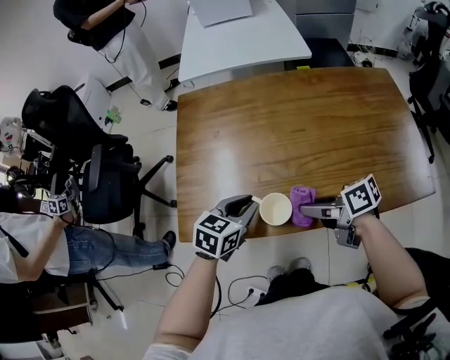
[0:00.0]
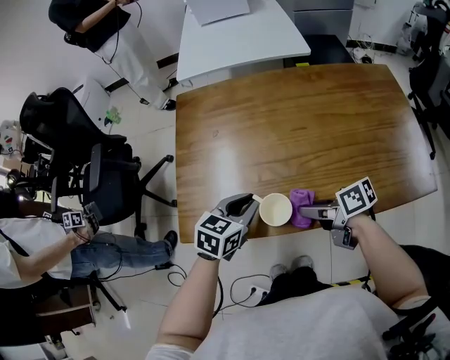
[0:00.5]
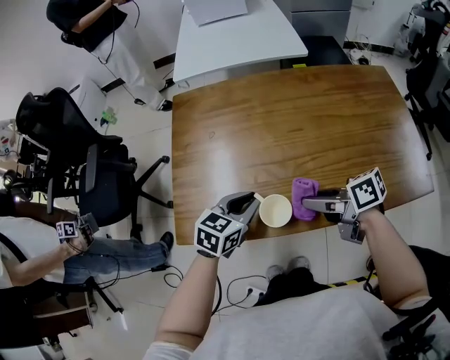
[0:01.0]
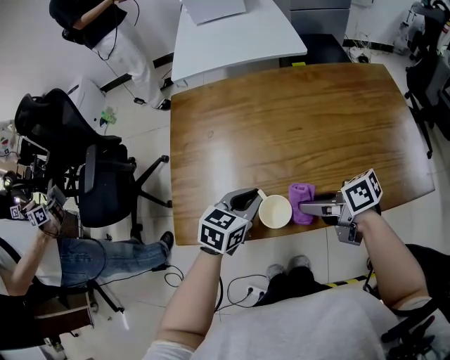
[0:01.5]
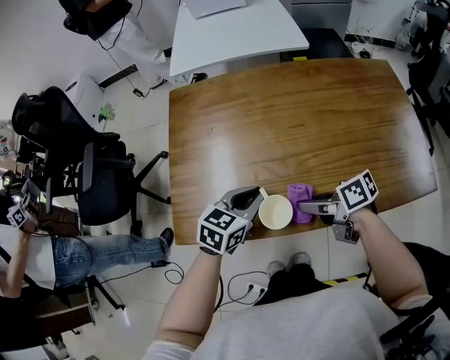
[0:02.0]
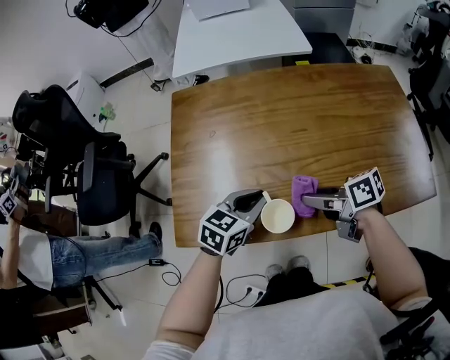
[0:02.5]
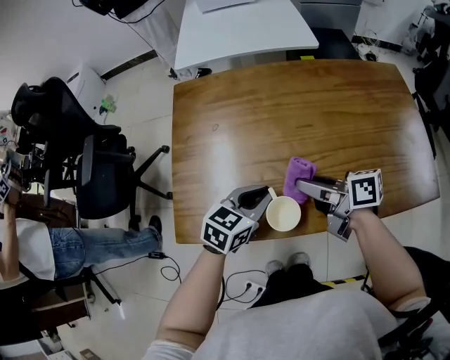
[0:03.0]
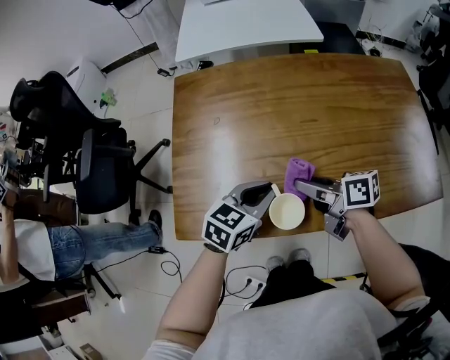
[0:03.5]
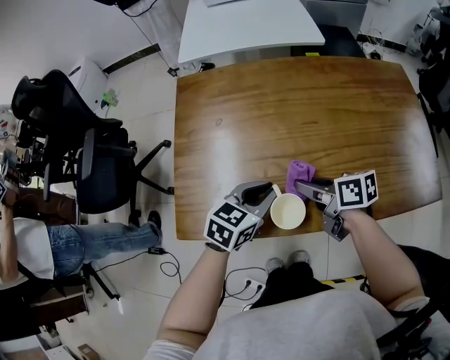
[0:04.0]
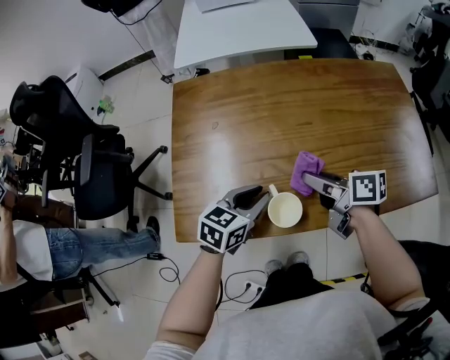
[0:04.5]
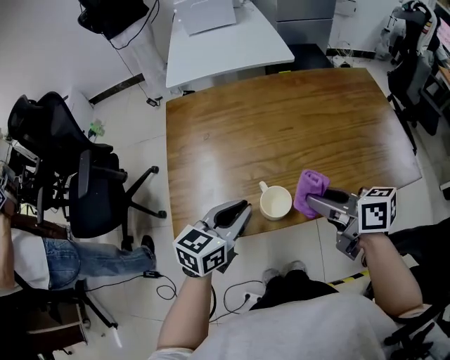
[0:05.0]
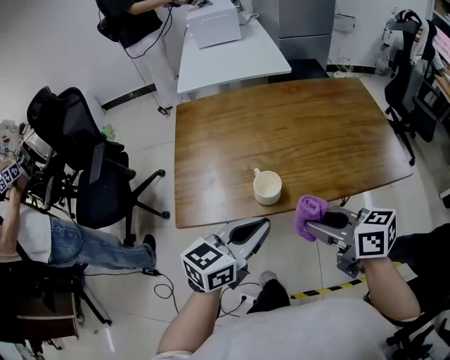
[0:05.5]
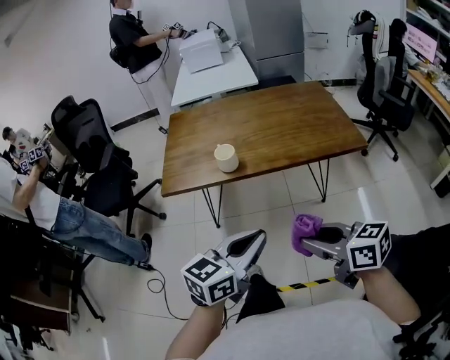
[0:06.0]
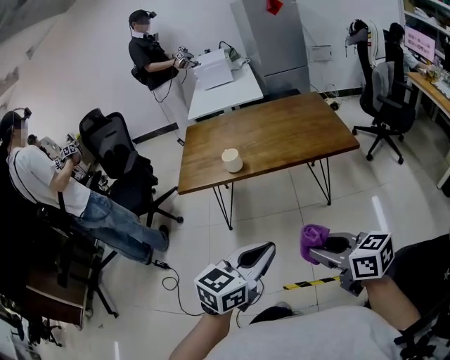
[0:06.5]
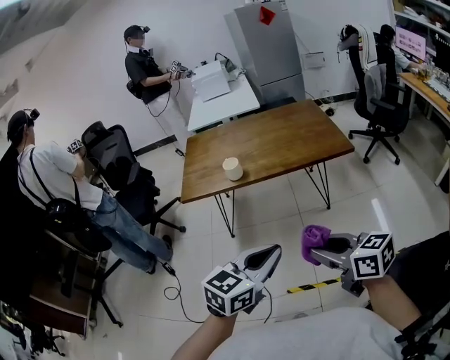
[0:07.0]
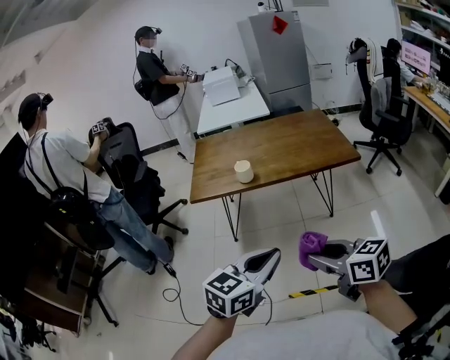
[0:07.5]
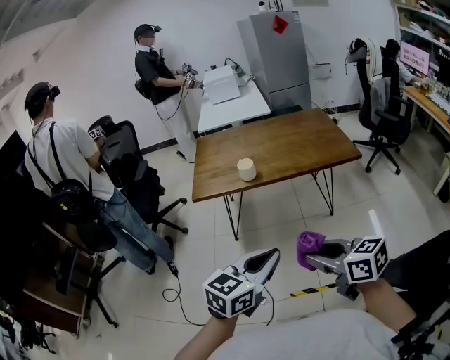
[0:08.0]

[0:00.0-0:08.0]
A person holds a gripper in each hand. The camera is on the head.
0:00.0 to 0:02.0: The grippers make only small movements.
0:02.0 to 0:04.0: The right gripper moves approximately 5 cm.
0:04.0 to 0:06.0: The pair of grippers is taken backward, roughly 50 cm. The right gripper changes its angle by about 30 degrees. Meanwhile the left gripper rotates some 20 degrees.
0:06.0 to 0:08.0: Both grippers move backward, about 20 cm.

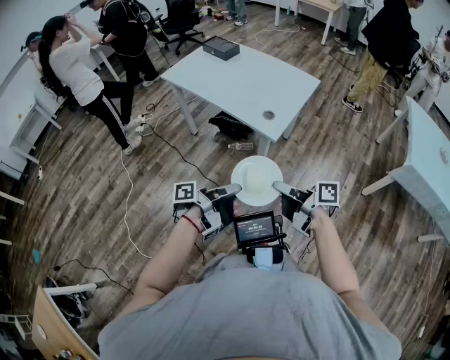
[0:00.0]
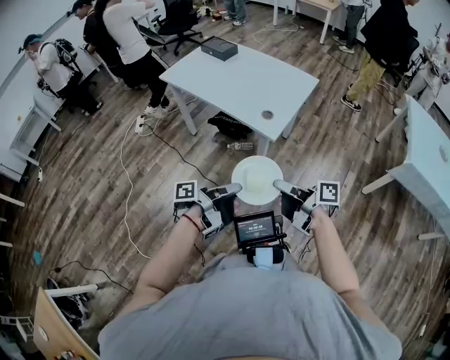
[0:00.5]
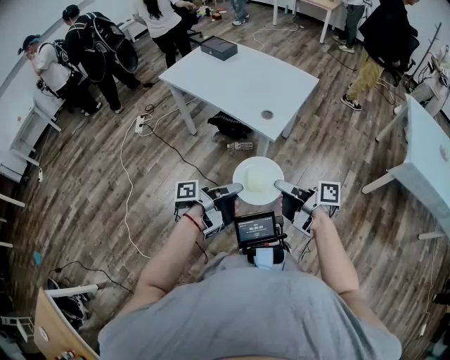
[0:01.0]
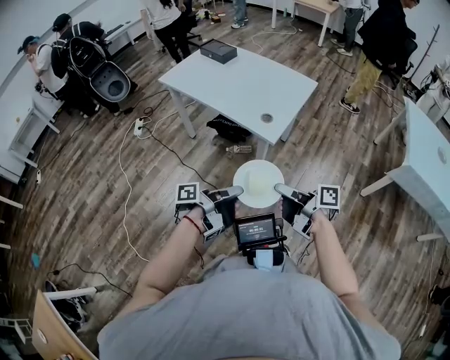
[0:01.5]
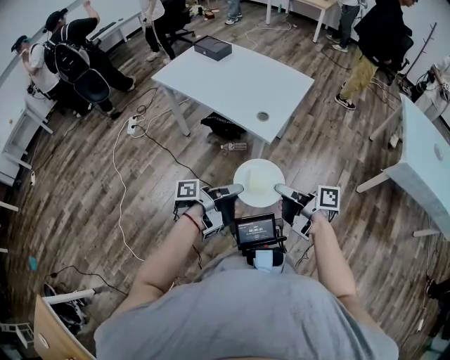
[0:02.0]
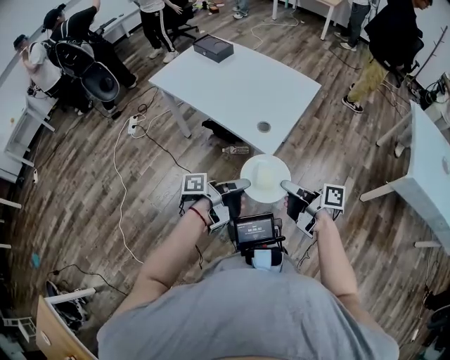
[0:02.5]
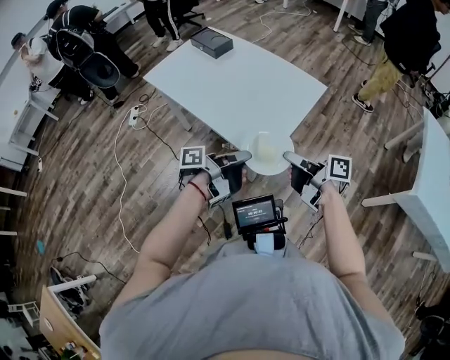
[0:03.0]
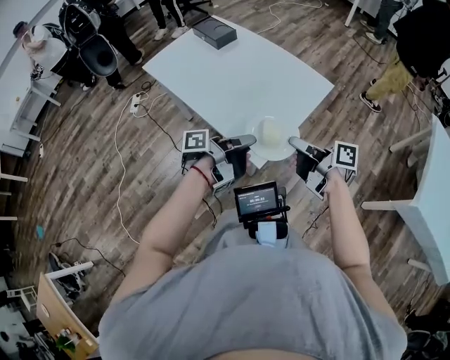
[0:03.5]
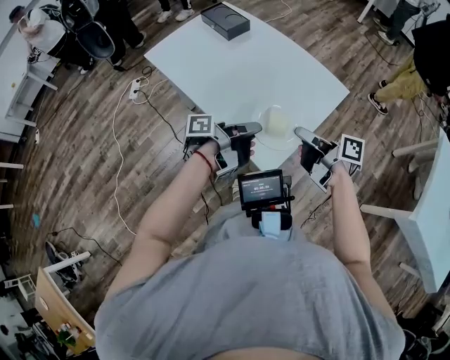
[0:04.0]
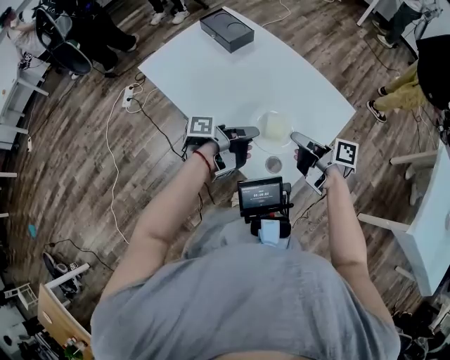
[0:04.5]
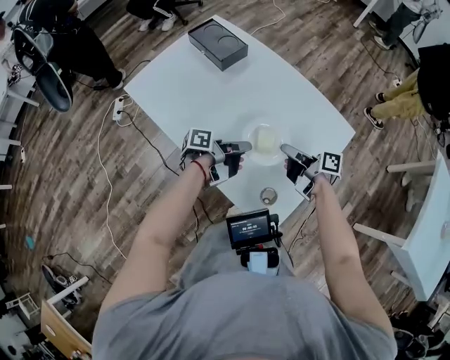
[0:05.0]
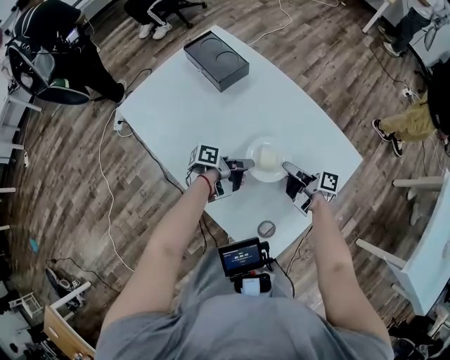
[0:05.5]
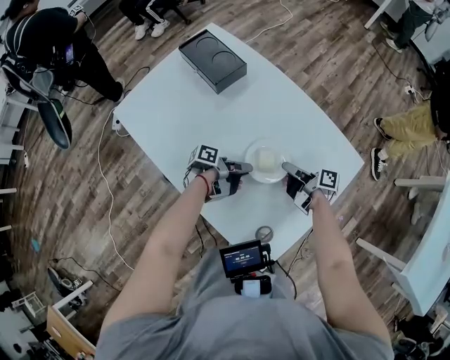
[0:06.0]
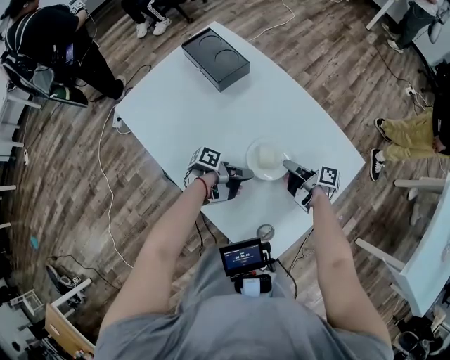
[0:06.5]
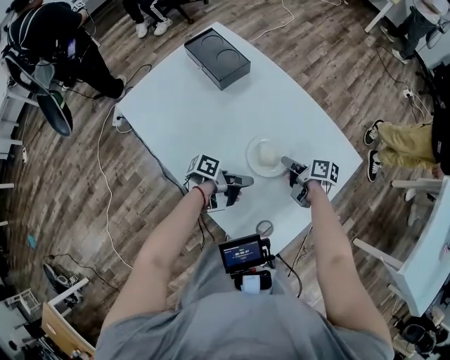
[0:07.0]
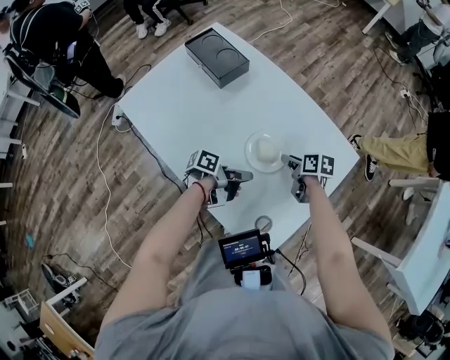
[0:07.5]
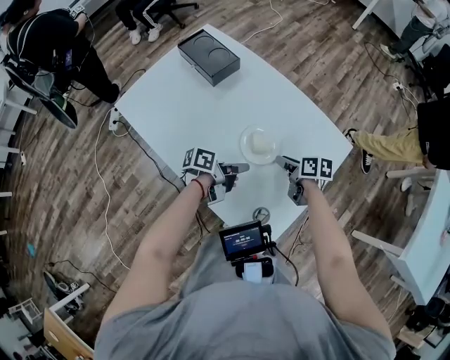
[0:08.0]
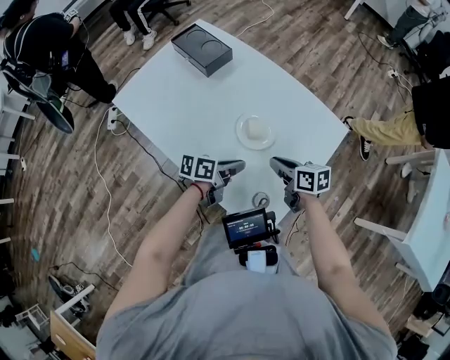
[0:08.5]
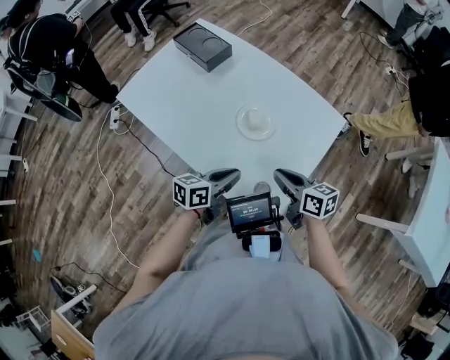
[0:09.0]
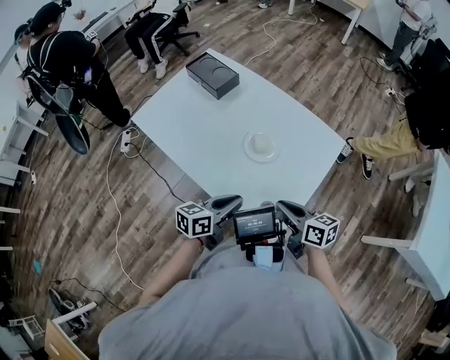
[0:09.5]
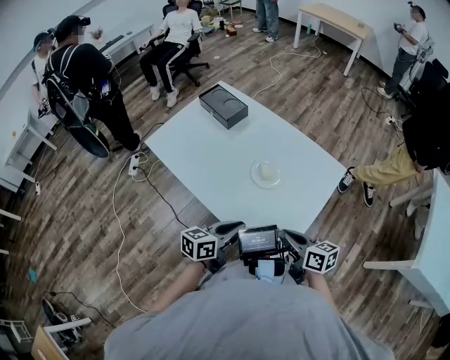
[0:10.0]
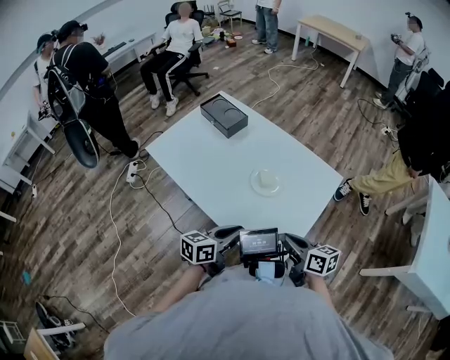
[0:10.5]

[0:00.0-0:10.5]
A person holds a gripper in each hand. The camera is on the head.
0:02.0 to 0:04.0: The right gripper shifts by roughly 40 cm.
0:04.0 to 0:06.5: The right gripper changes place by some 35 cm.
0:06.5 to 0:08.5: The right gripper ends up some 10 cm from where it was, and rotates some 40 degrees.
0:08.5 to 0:10.5: The right gripper shifts by roughly 15 cm.

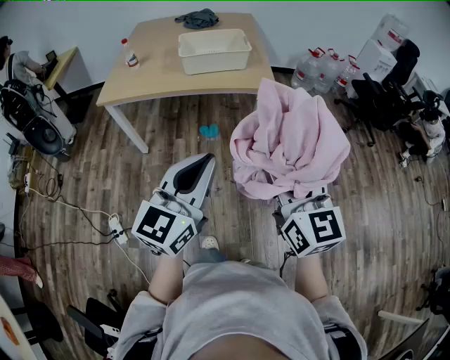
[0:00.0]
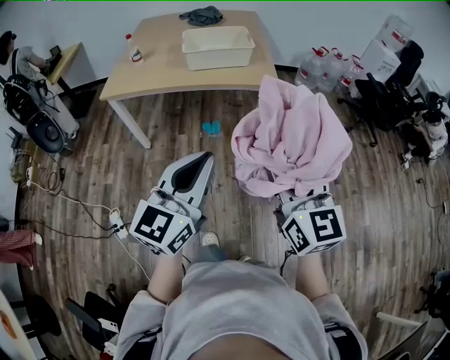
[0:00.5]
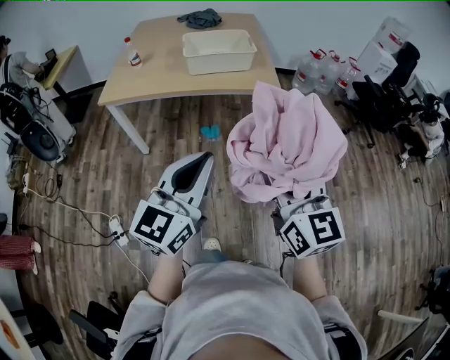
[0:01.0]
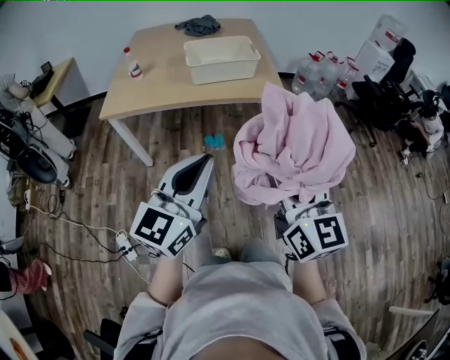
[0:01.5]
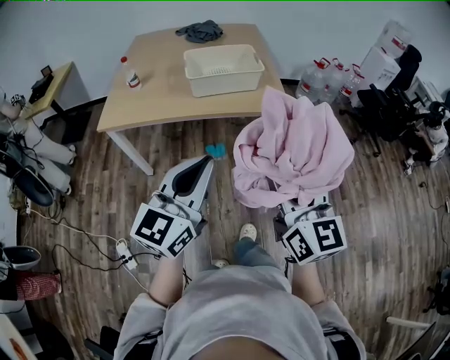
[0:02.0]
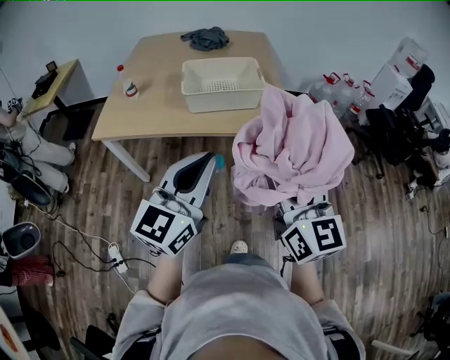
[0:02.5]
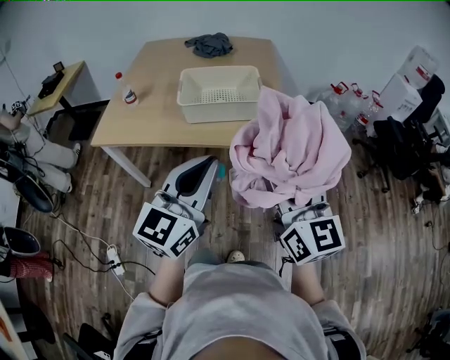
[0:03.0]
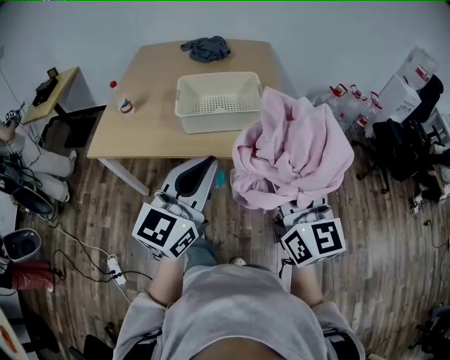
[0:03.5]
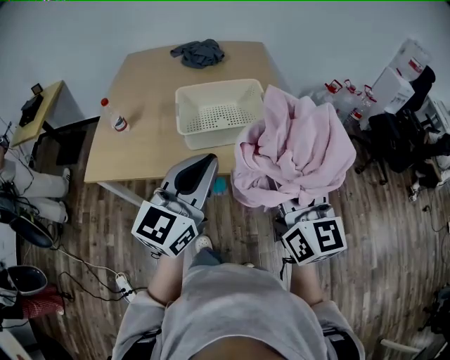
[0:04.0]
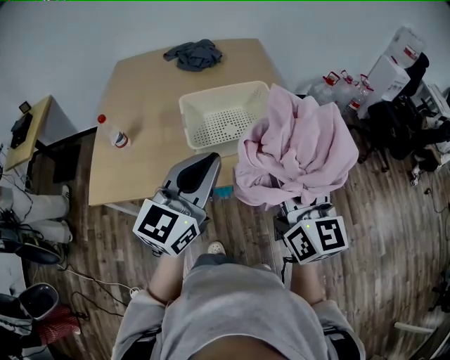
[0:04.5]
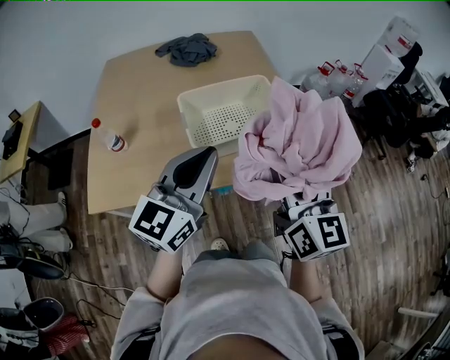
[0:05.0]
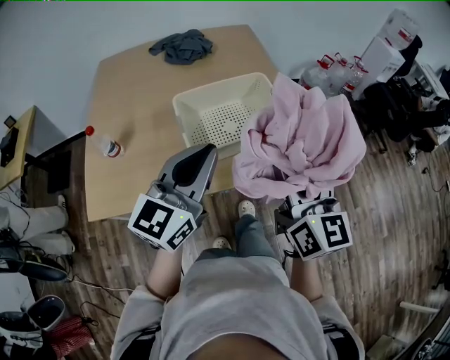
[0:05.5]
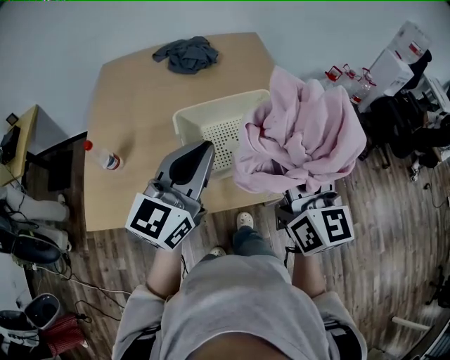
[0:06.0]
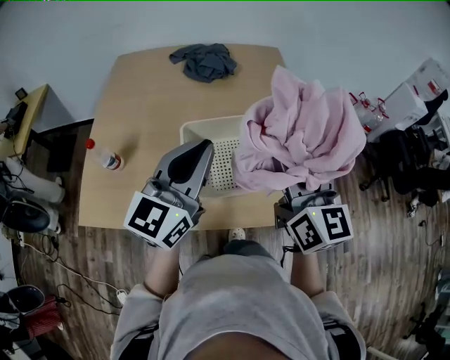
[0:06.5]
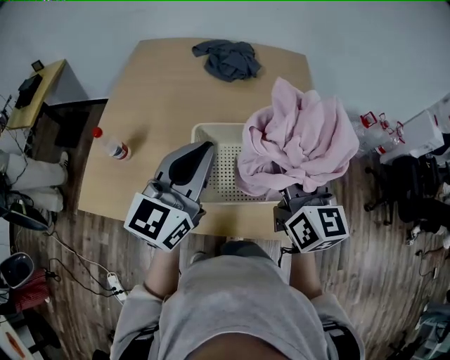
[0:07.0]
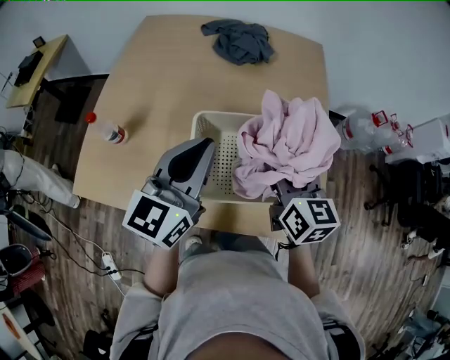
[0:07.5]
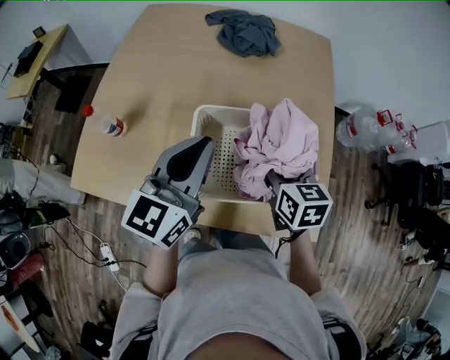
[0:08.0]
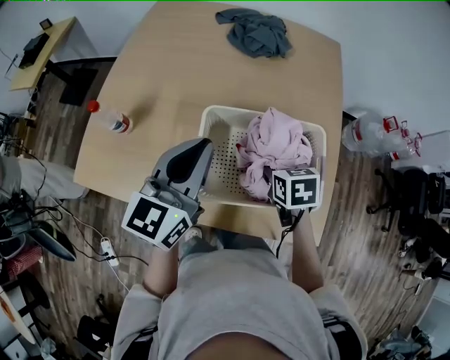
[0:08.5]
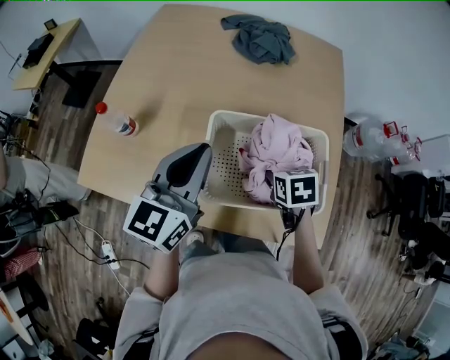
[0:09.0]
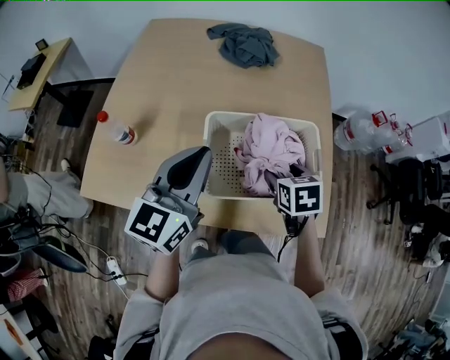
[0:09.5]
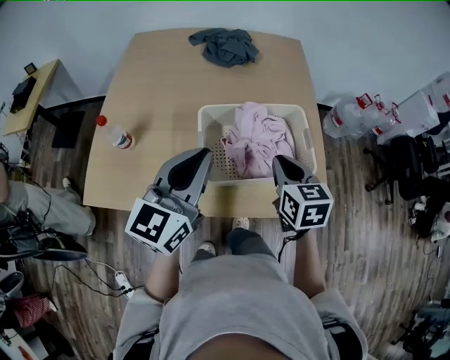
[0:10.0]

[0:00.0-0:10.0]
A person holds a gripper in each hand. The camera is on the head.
0:00.0 to 0:02.0: The grippers both shift forward and to the left by approximately 15 cm.
0:02.0 to 0:04.0: Both grippers move forward, about 30 cm.
0:04.0 to 0:06.0: Both grippers move forward and to the left, some 20 cm.
0:06.0 to 0:08.0: The right gripper goes approximately 25 cm downward and forward, and tilts its fingers roughly 40 degrees downward, while the left gripper goes some 15 cm forward, downward and to the left, and swivels approximately 20 degrees.
0:08.0 to 0:10.0: Both grippers travel together backward, about 10 cm. The right gripper closes its fingers.
